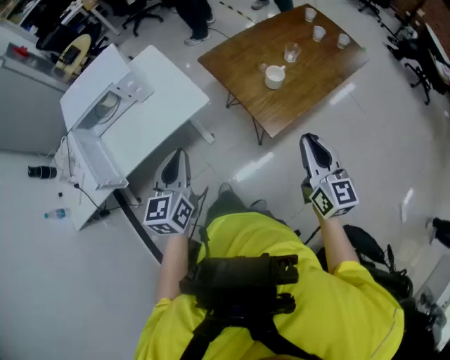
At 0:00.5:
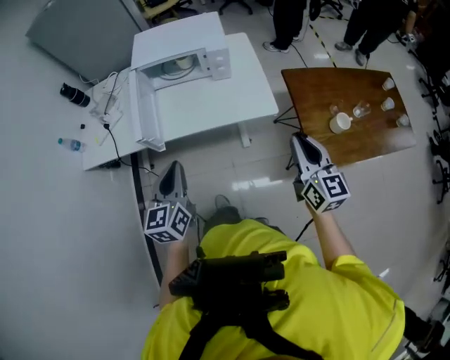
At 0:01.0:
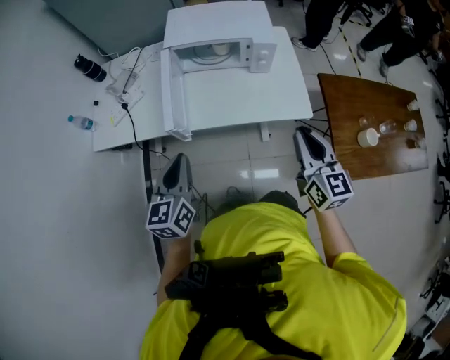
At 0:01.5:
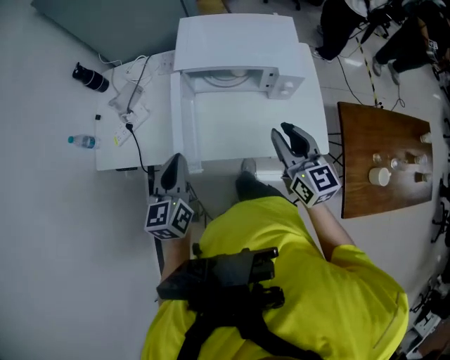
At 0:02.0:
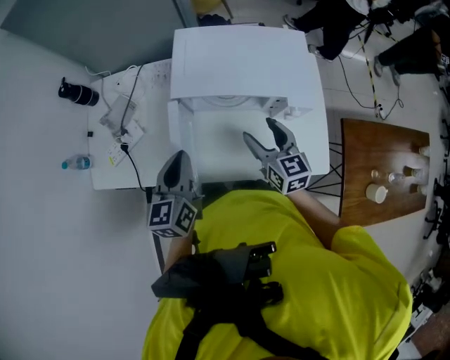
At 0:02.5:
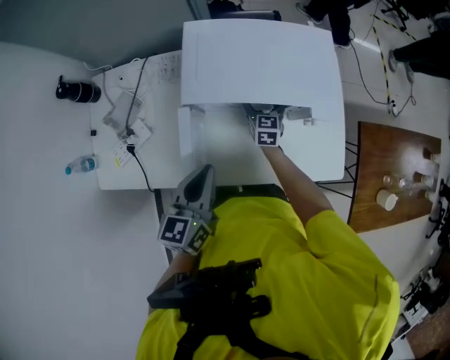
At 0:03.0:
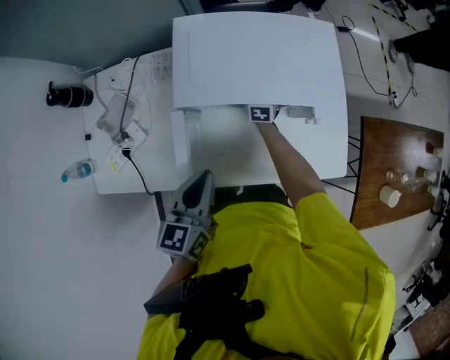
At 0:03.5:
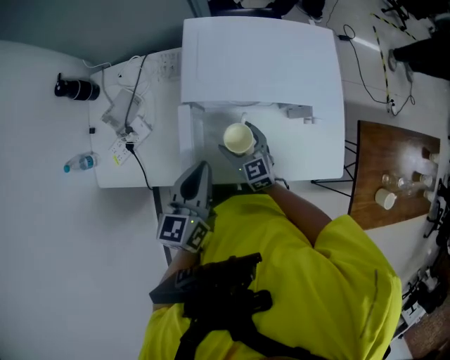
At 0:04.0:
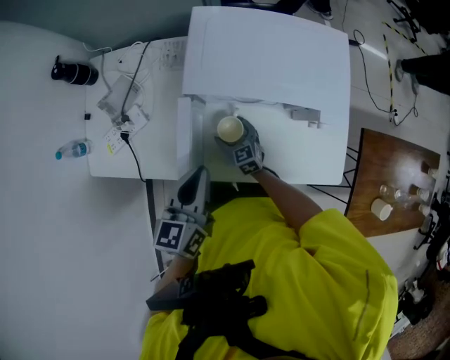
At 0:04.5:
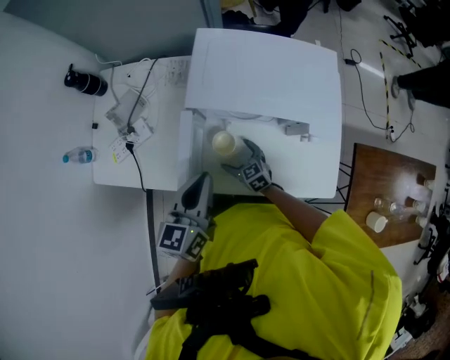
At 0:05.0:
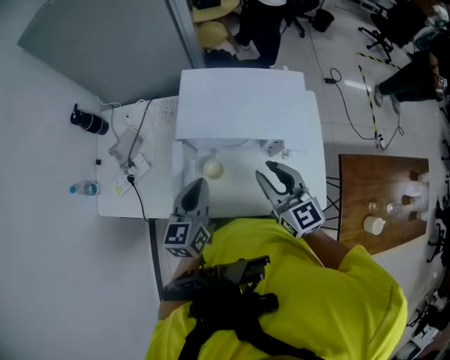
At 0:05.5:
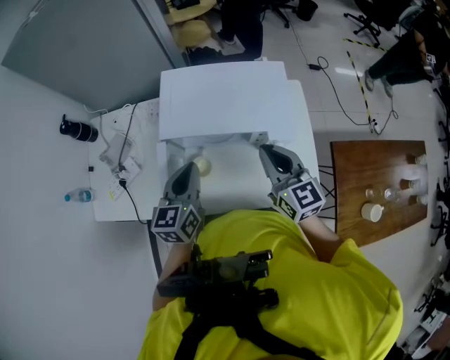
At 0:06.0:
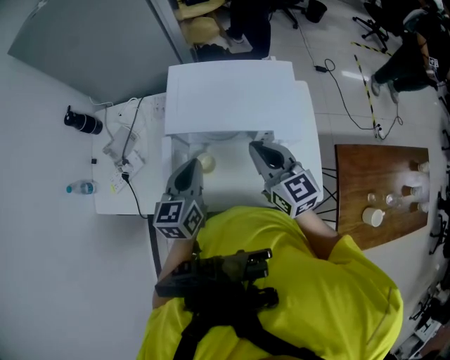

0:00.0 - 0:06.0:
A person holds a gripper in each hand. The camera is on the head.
0:00.0 - 0:02.0: The two grippers travel together, about 70 cm. The right gripper swivels approximately 40 degrees, and opens. The left gripper turns by roughly 30 degrees.
0:02.0 - 0:04.0: The right gripper moves up and down over approximately 25 cm, changing direction 2 times, and turns by approximately 20 degrees.
0:04.0 - 0:06.0: The right gripper is displaced upward and to the right by roughly 40 cm, swivels some 20 degrees, and closes up, while the left gripper goes about 10 cm to the right and forward.

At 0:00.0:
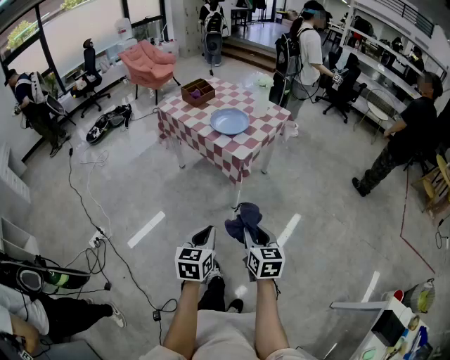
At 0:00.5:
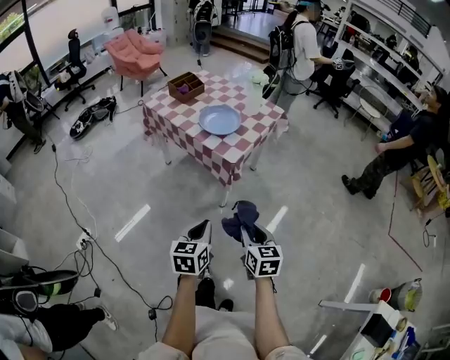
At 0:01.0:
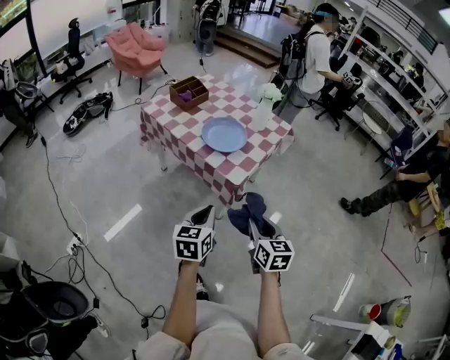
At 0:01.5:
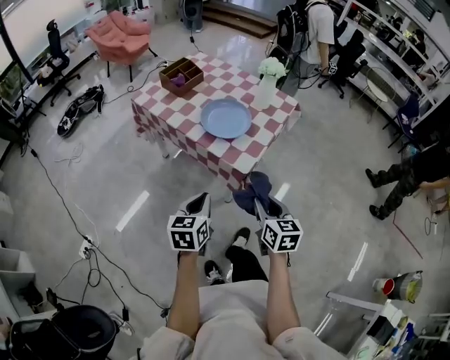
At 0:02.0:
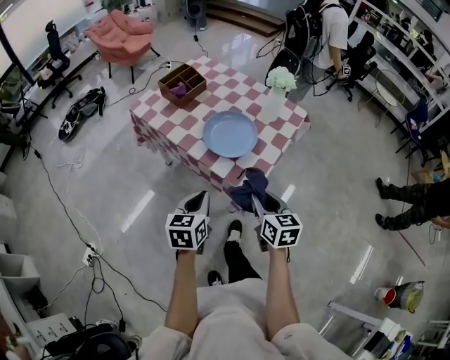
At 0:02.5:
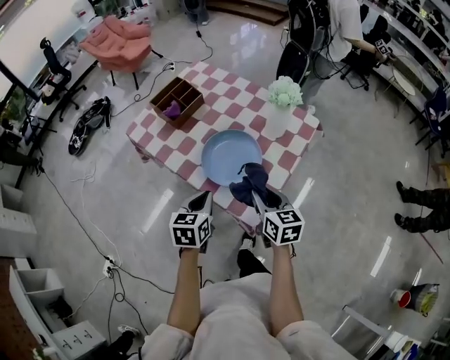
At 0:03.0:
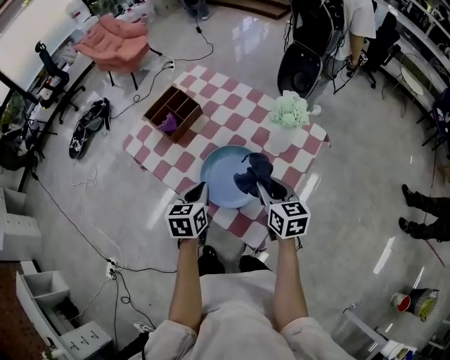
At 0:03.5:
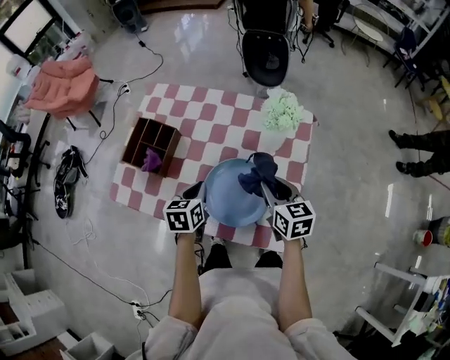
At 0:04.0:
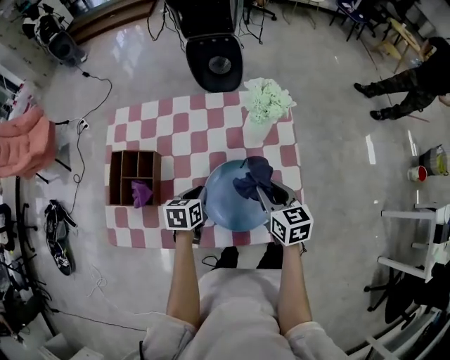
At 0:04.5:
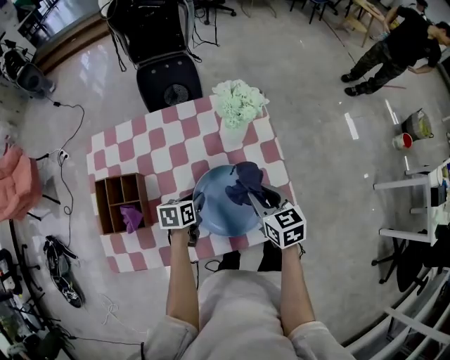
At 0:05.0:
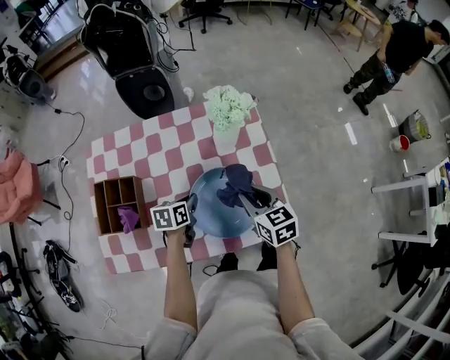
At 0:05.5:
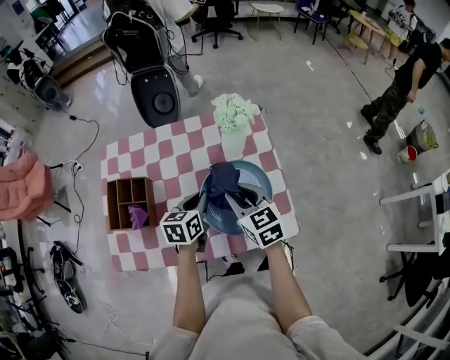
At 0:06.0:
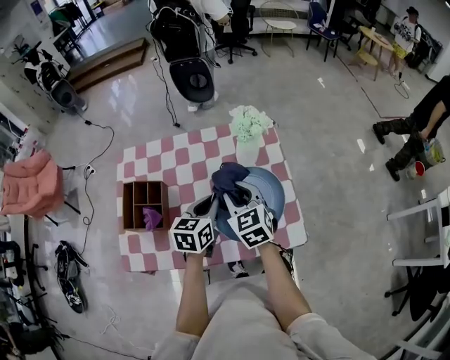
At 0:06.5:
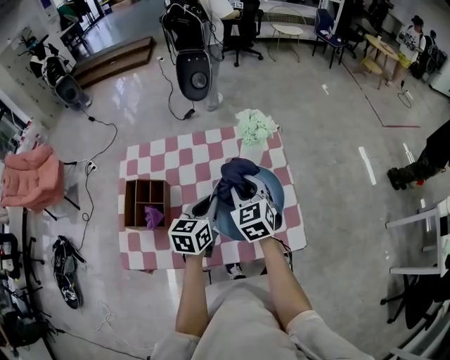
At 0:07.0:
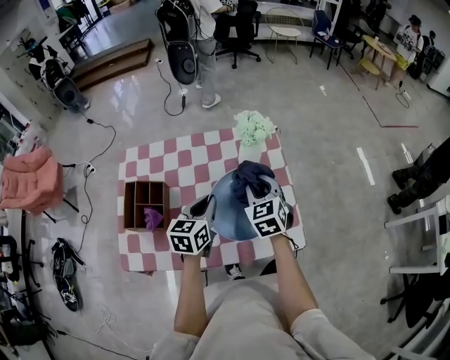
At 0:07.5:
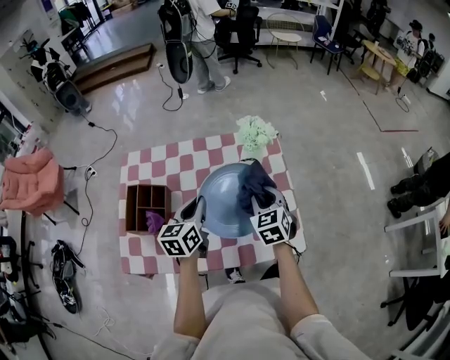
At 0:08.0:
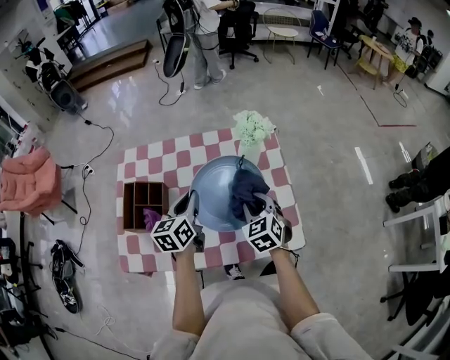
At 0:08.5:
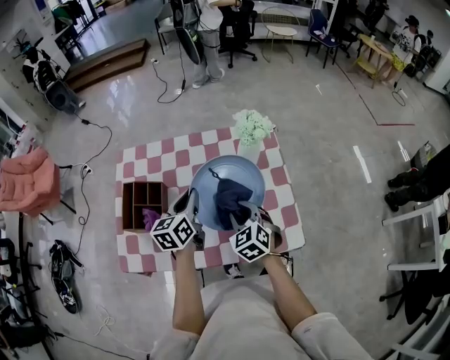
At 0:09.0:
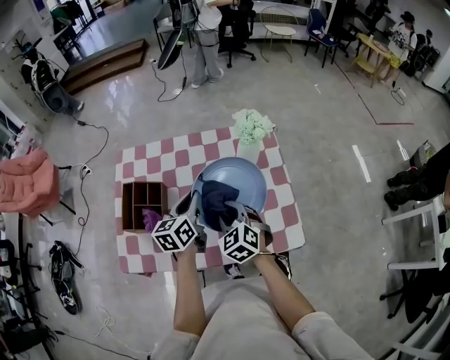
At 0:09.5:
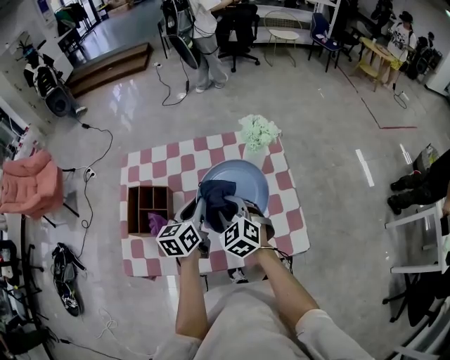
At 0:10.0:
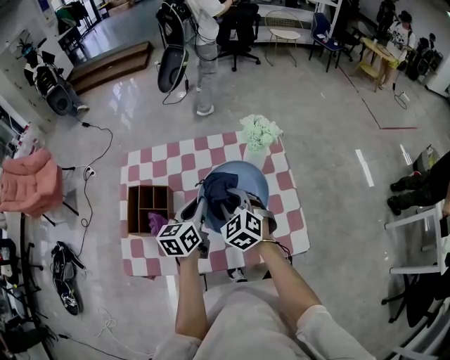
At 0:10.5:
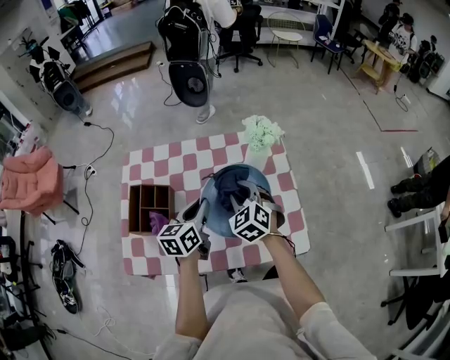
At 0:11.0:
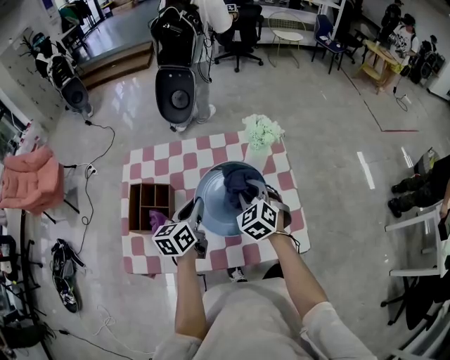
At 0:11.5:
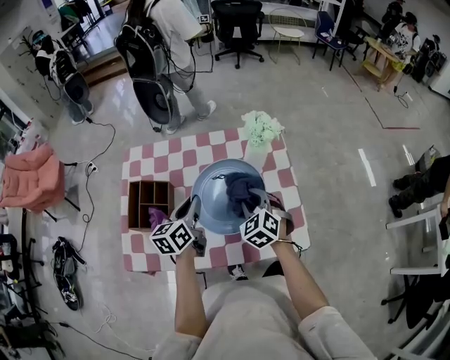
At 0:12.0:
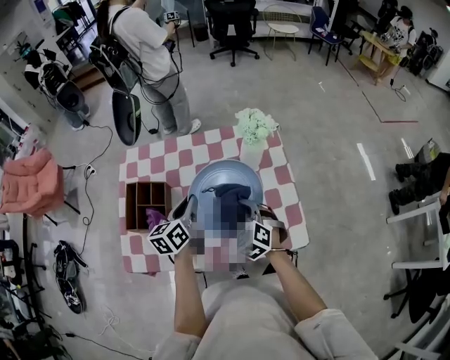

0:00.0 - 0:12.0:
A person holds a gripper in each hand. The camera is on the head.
0:00.0 - 0:02.0: Both grippers are carried forward, about 40 cm.
0:02.0 - 0:04.0: The left gripper moves approximately 40 cm, and swivels approximately 50 degrees. The right gripper moves about 30 cm, and swivels approximately 30 degrees.
0:04.0 - 0:06.0: The left gripper heads upward, covering about 15 cm, and changes its angle by some 20 degrees. The right gripper heads to the left and upward, covering some 10 cm, and changes its angle by about 20 degrees.
0:06.0 - 0:08.0: The right gripper goes approximately 10 cm downward and to the right. The left gripper moves to the left, about 10 cm.
0:08.0 - 0:10.0: The right gripper moves to the left, roughly 10 cm.
0:10.0 - 0:12.0: The right gripper shifts by approximately 10 cm.

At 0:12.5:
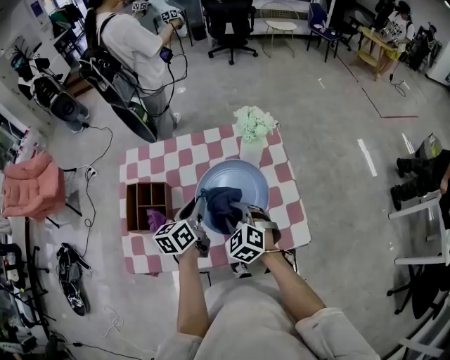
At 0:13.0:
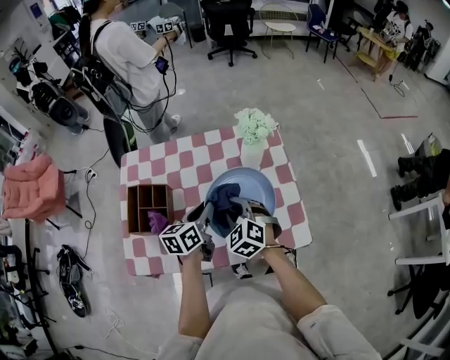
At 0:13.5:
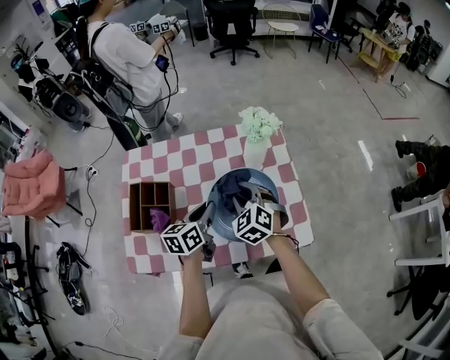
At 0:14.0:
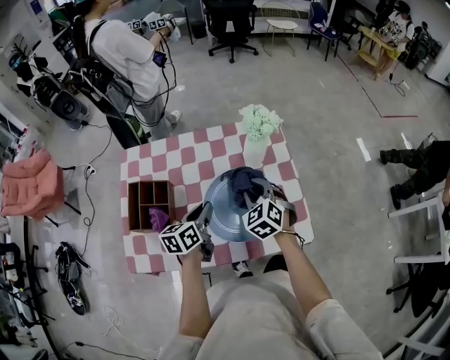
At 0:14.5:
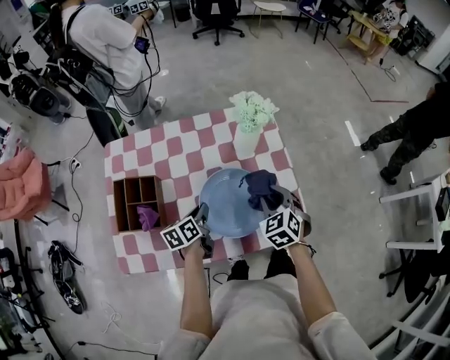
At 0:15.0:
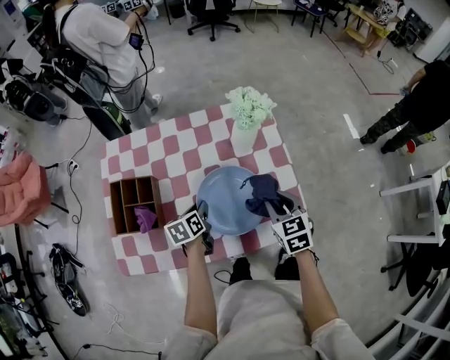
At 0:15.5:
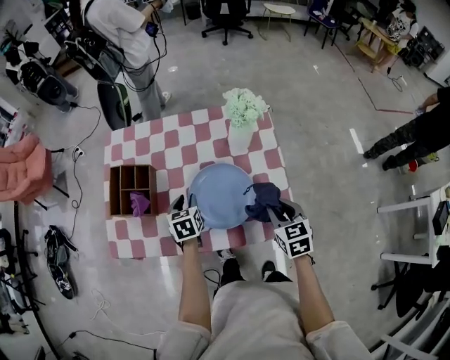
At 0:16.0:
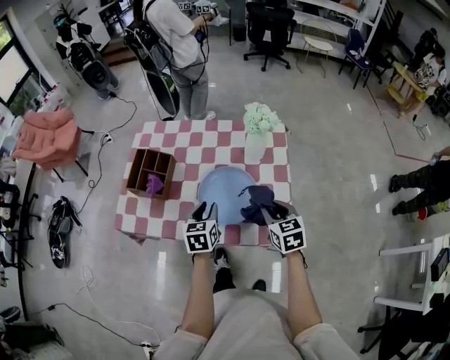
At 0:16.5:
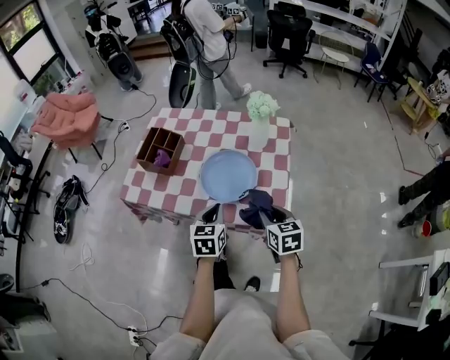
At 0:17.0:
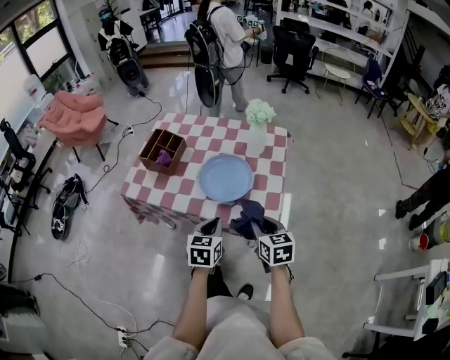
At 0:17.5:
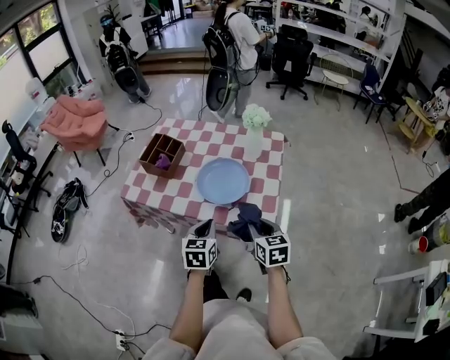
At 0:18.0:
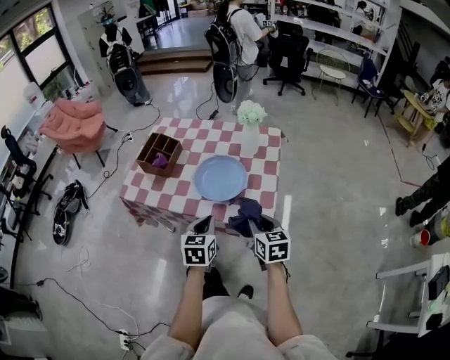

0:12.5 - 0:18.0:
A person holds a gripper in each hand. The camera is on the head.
0:12.5 - 0:14.5: The right gripper travels to the right by about 15 cm, and swivels roughly 20 degrees; the left gripper shifts approximately 10 cm downward, and changes its angle by approximately 20 degrees.
0:14.5 - 0:16.0: The left gripper ends up about 15 cm from where it was, changes its angle by approximately 30 degrees, and opens up. Meanwhile the right gripper shifts by approximately 10 cm, and swivels about 30 degrees.
0:16.0 - 0:18.0: Both grippers travel together backward, about 15 cm. The left gripper closes.

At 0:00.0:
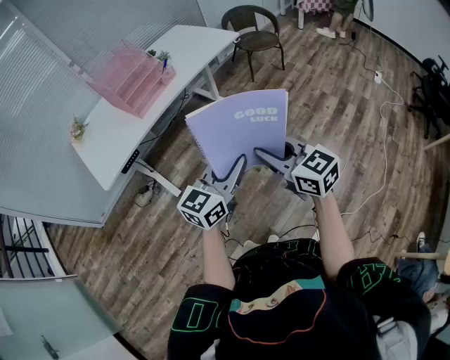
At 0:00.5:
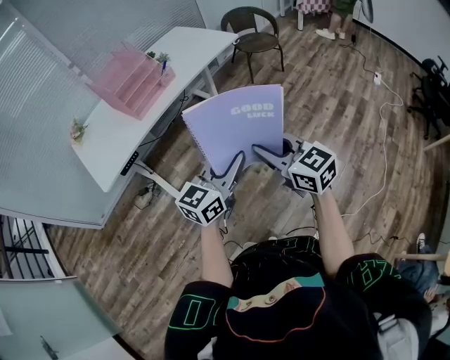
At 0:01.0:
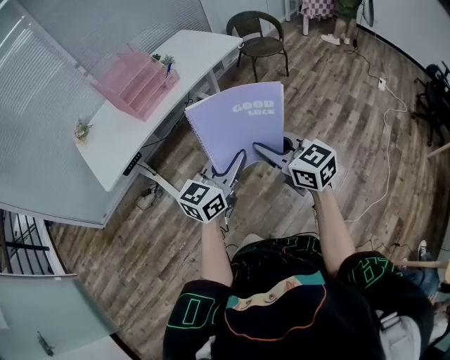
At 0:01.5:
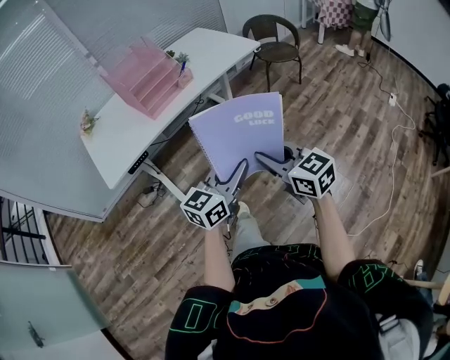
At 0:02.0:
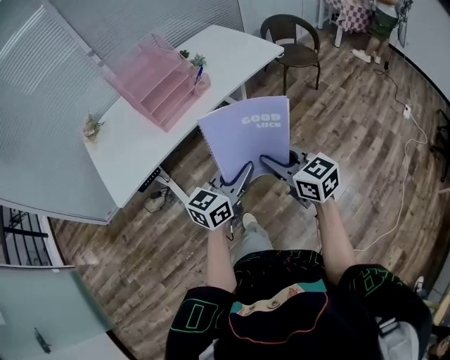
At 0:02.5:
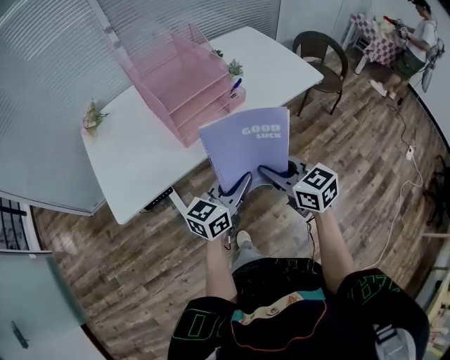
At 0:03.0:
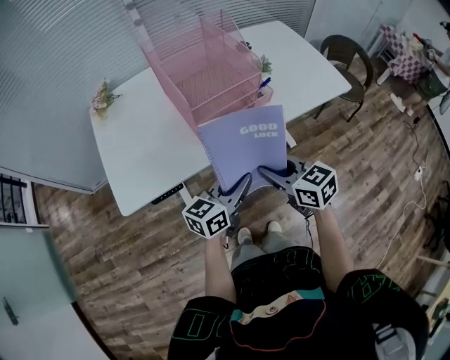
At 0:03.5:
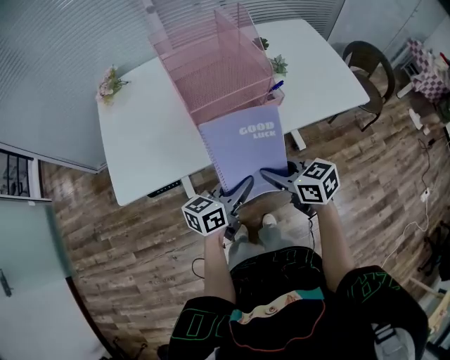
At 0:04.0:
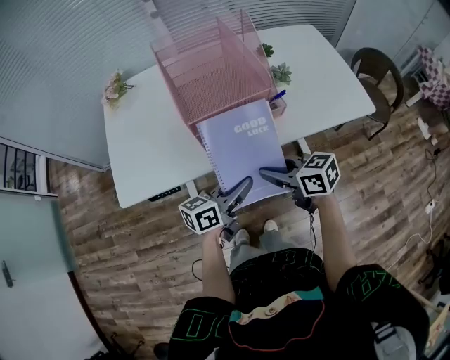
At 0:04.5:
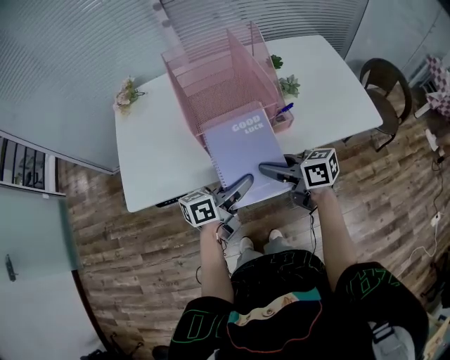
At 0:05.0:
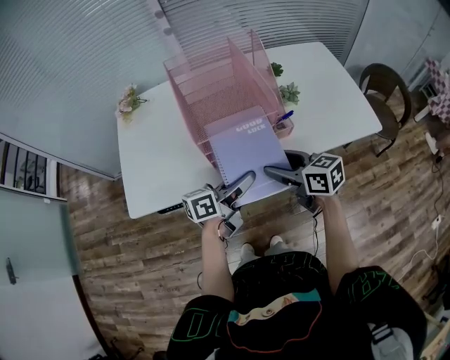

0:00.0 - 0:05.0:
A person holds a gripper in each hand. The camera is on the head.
0:00.0 - 0:02.5: The grippers both shift forward and to the left by about 40 cm.
0:02.5 - 0:05.0: Both grippers travel together forward, some 20 cm. The left gripper rotates about 30 degrees. Meanwhile the right gripper turns by approximately 30 degrees, and opens up.
